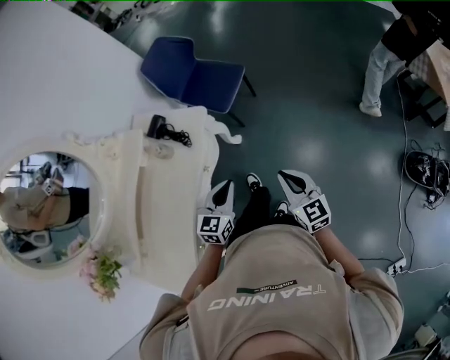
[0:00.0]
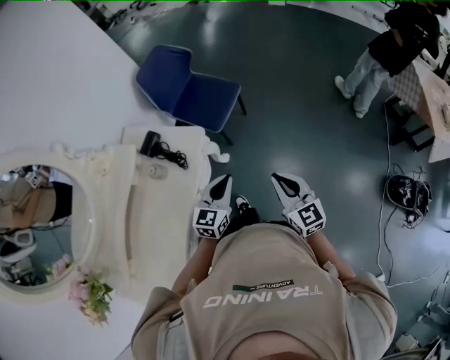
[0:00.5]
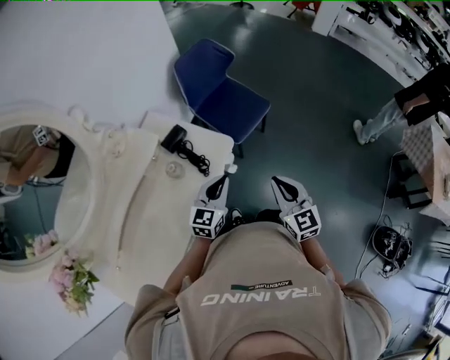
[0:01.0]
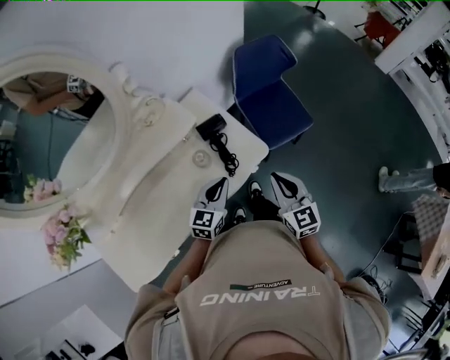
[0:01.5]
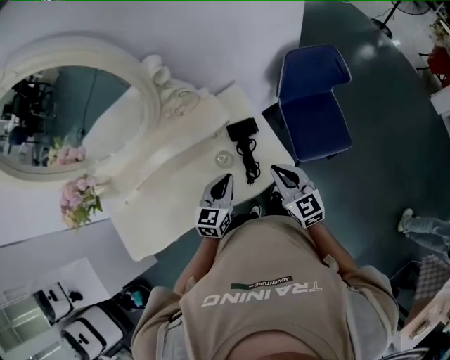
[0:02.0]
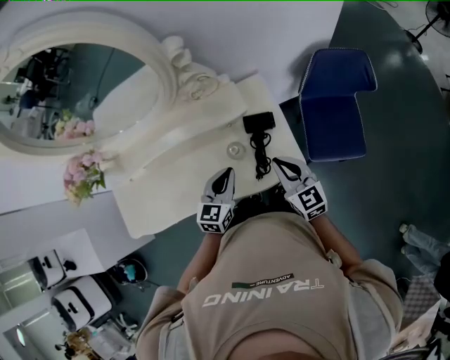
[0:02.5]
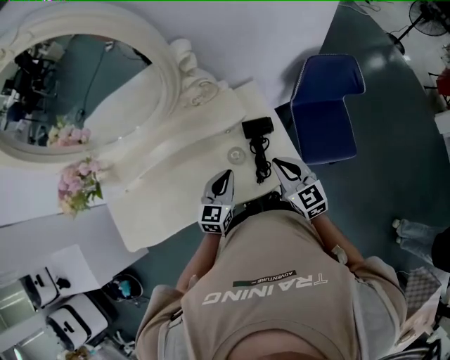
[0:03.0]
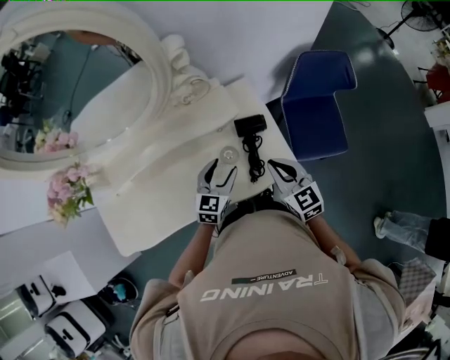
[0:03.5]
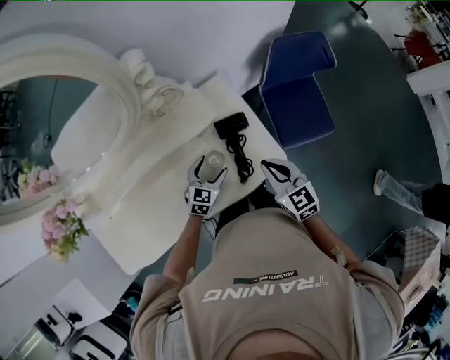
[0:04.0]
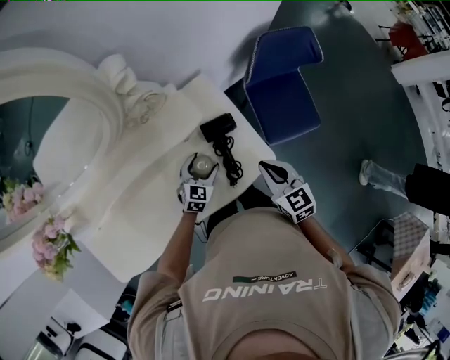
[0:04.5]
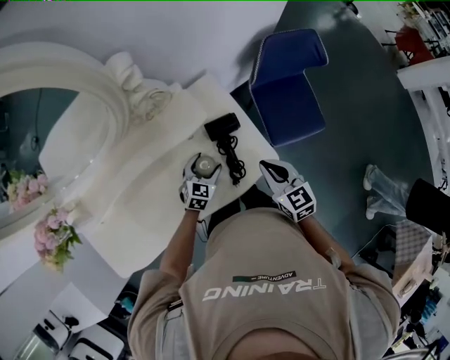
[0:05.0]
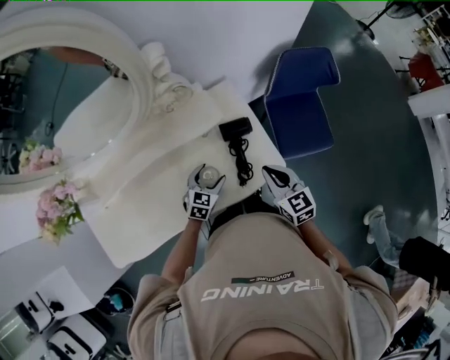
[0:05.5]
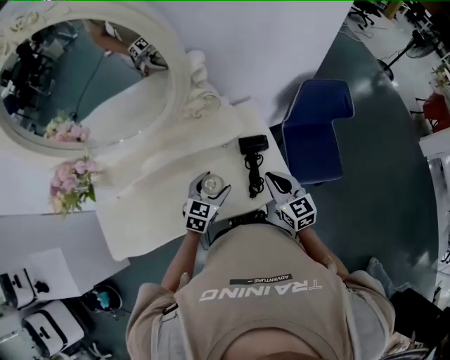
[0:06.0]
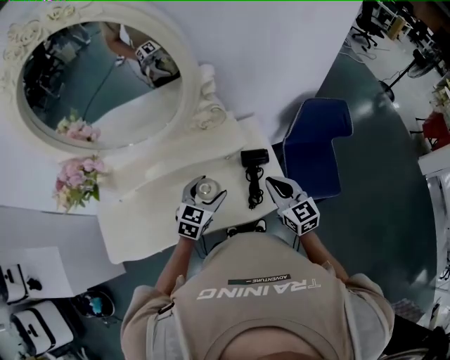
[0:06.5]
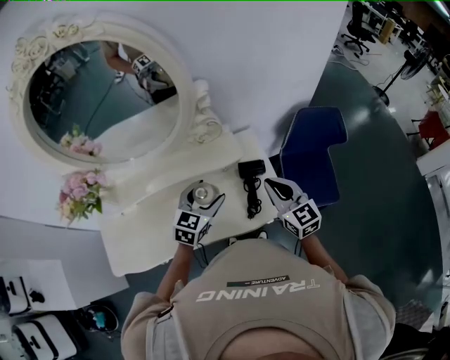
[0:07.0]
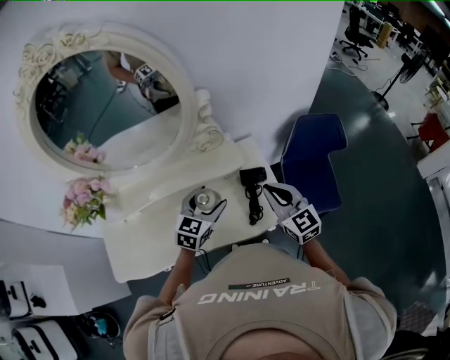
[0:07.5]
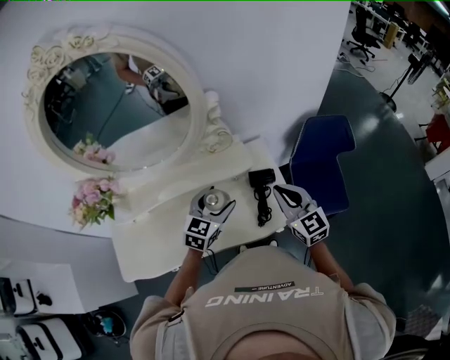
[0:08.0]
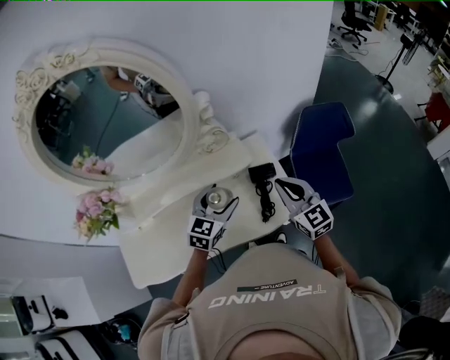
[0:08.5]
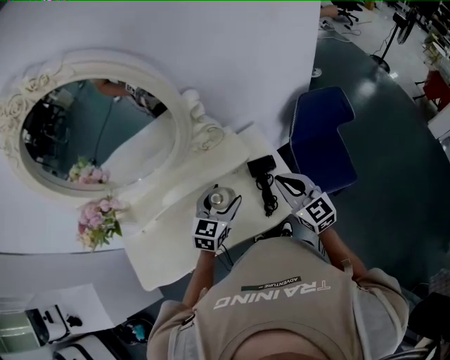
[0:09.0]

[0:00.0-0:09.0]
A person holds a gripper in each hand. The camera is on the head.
0:00.0 to 0:02.0: The left gripper shifts by about 30 cm, and swivels approximately 50 degrees, while the right gripper changes place by approximately 40 cm, and rotates about 50 degrees.
0:02.0 to 0:04.5: The left gripper moves downward and forward, some 20 cm, changes its angle by approximately 20 degrees, and opens.
0:04.5 to 0:07.0: The left gripper heads upward, covering approximately 25 cm. Meanwhile the right gripper shifts some 10 cm upward, and swivels approximately 20 degrees.
0:07.0 to 0:09.0: The grippers move only a little.

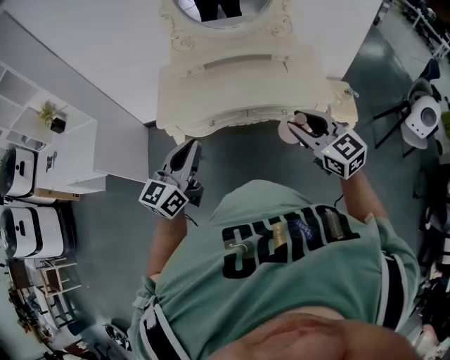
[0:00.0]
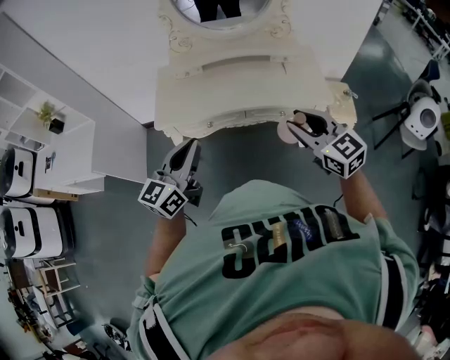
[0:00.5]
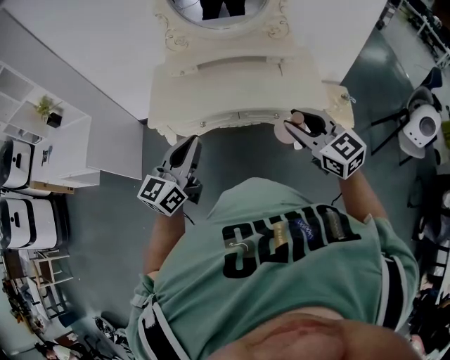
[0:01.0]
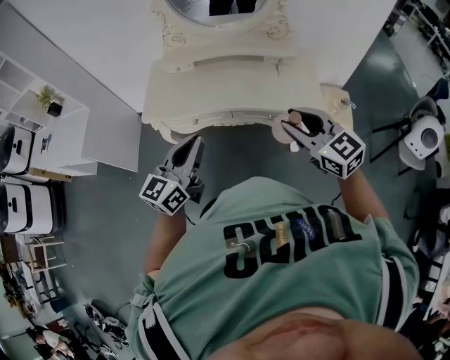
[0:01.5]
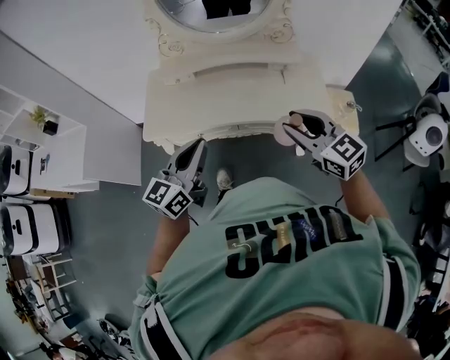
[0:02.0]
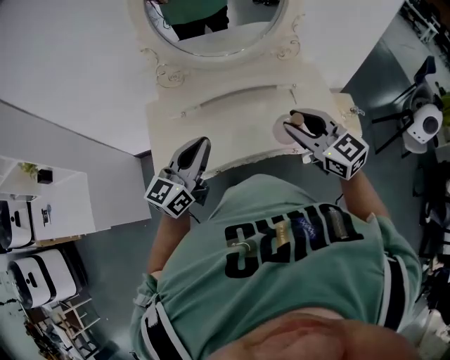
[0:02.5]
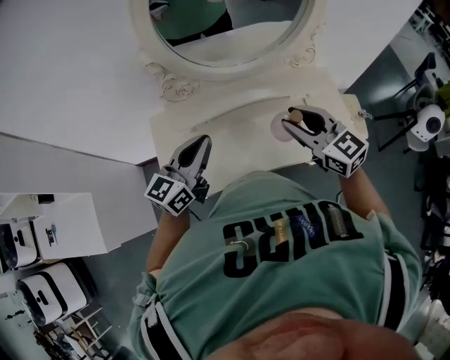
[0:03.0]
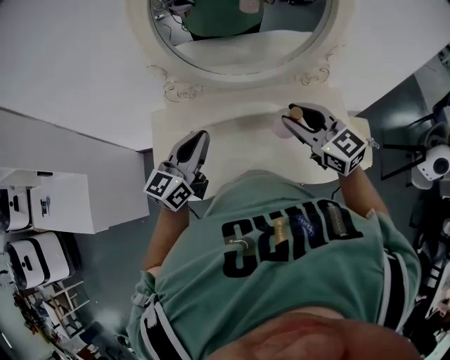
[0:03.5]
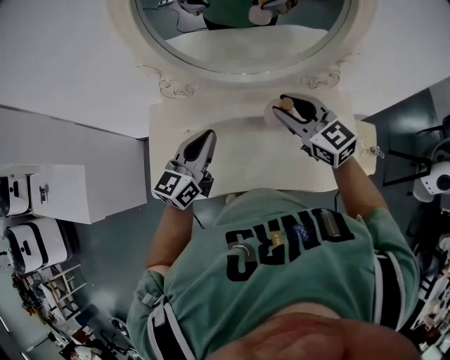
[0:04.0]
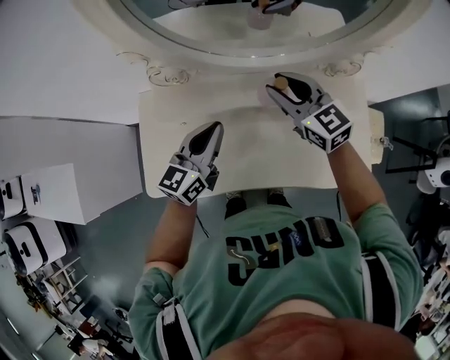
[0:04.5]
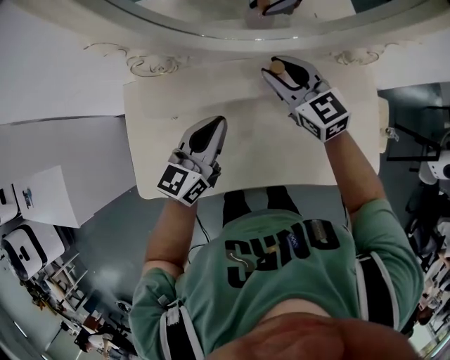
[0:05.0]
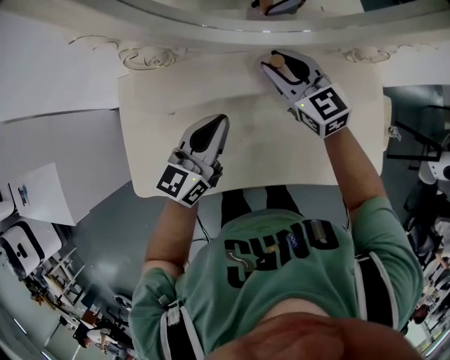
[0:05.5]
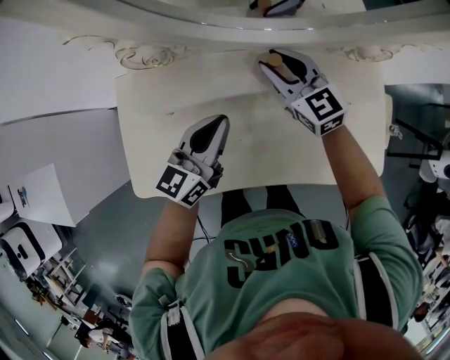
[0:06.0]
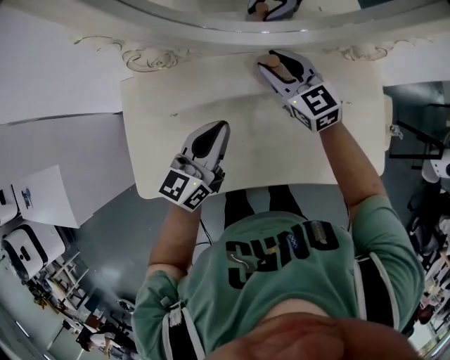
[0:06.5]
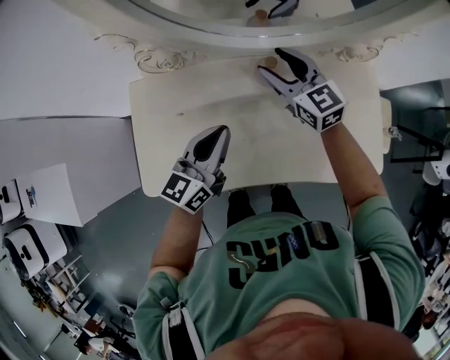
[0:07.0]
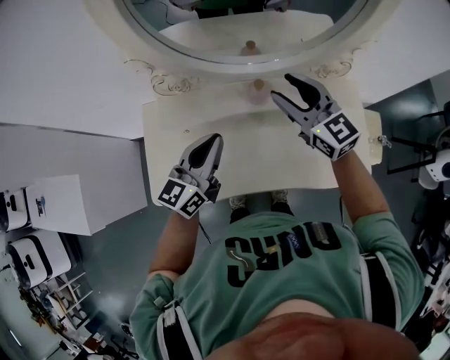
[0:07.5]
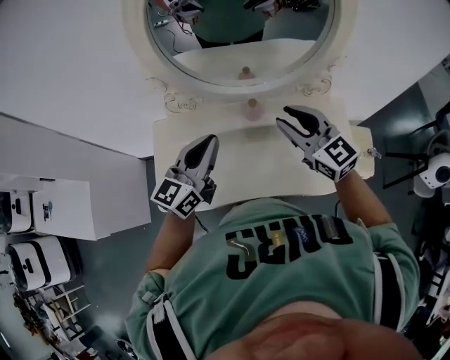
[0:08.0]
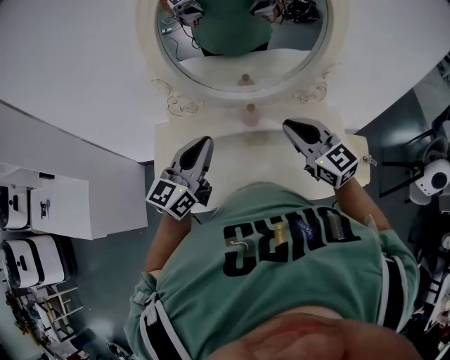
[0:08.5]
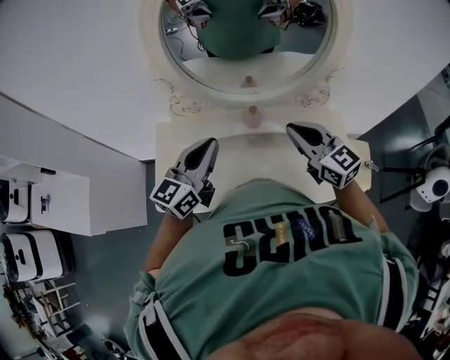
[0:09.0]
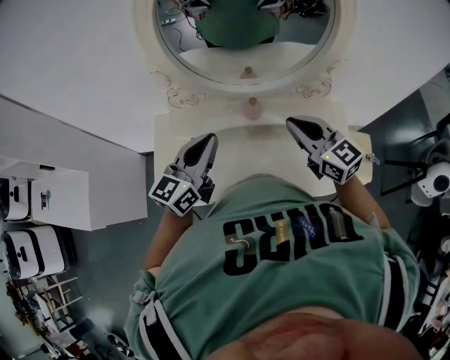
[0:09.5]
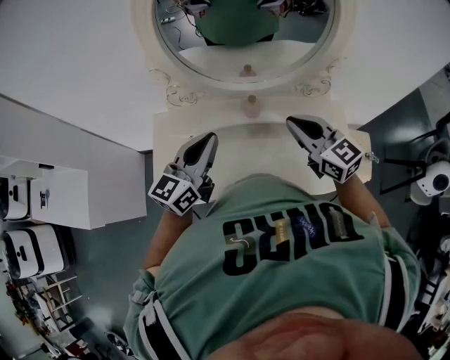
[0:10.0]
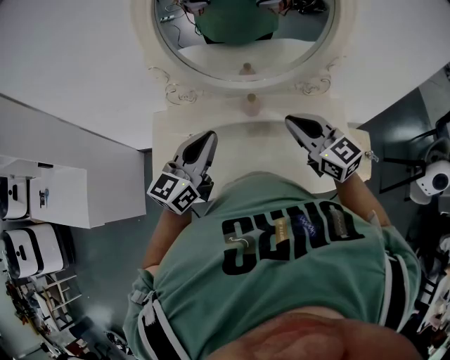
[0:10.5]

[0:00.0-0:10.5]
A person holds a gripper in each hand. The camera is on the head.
0:00.0 to 0:02.0: Both grippers travel together forward and to the right, about 15 cm.
0:02.0 to 0:04.0: Both grippers travel together forward, approximately 40 cm.
0:04.0 to 0:06.5: The left gripper travels downward by roughly 15 cm, while the right gripper is displaced downward and forward by about 25 cm.
0:06.5 to 0:08.5: The left gripper shifts approximately 25 cm upward; the right gripper shifts about 30 cm upward and backward, and closes its fingers.
0:08.5 to 0:10.5: The grippers make only small movements.

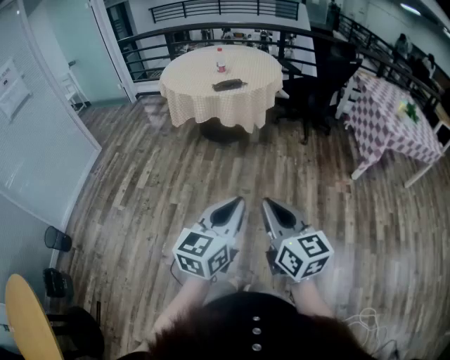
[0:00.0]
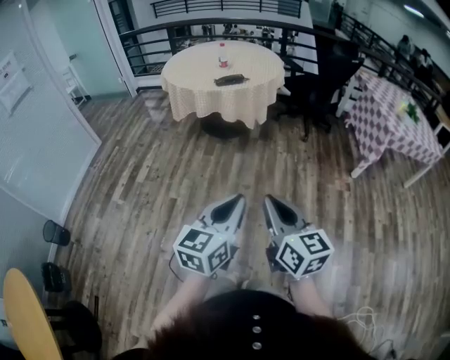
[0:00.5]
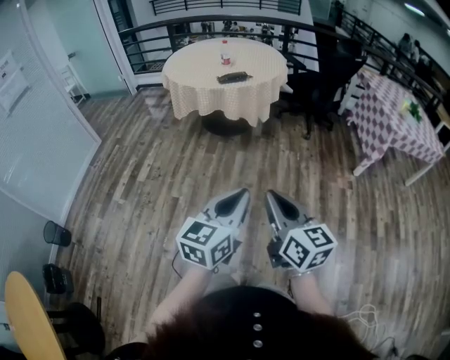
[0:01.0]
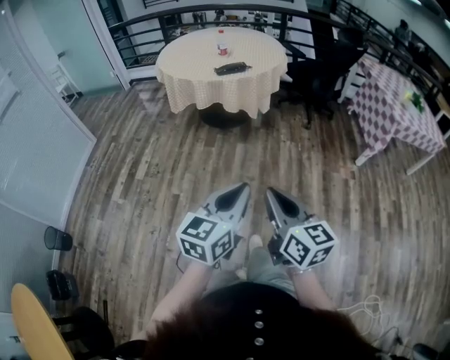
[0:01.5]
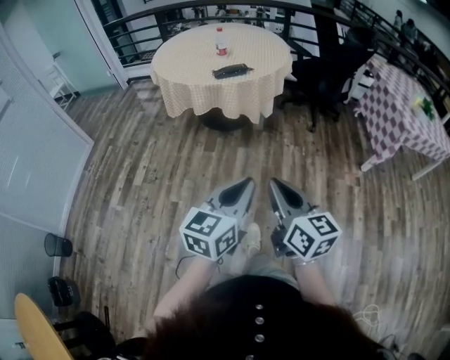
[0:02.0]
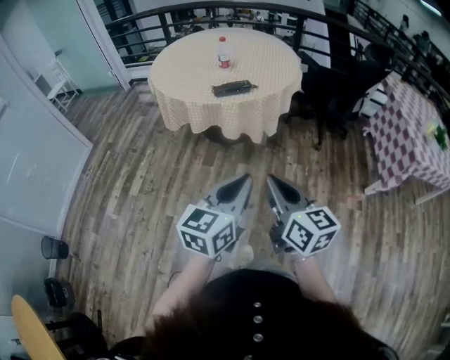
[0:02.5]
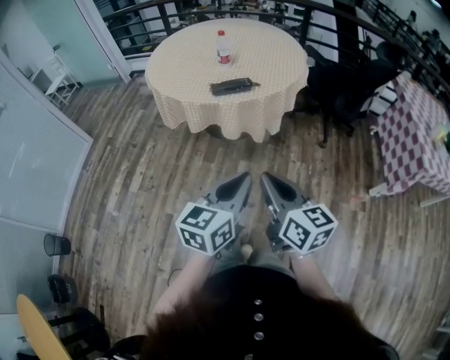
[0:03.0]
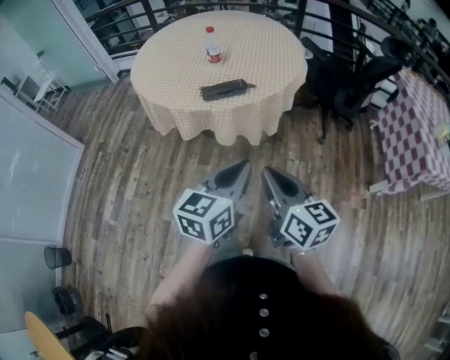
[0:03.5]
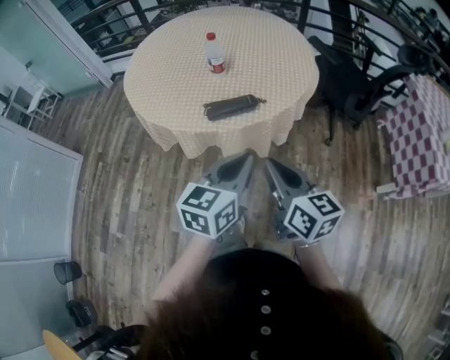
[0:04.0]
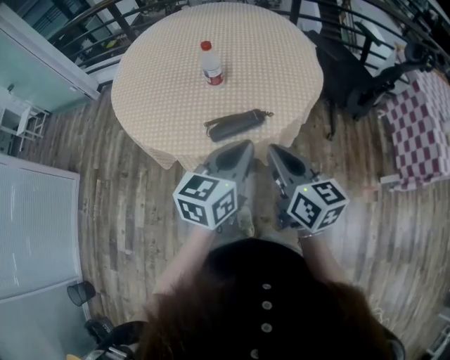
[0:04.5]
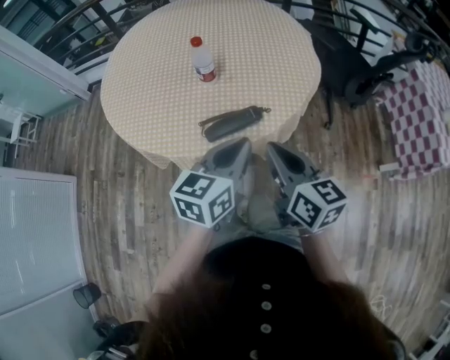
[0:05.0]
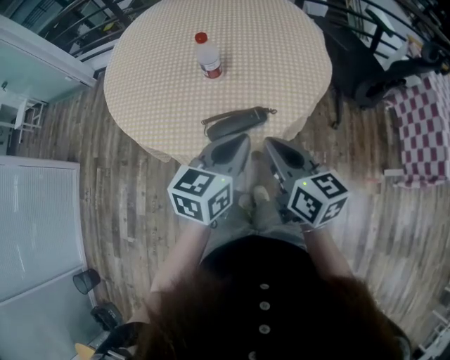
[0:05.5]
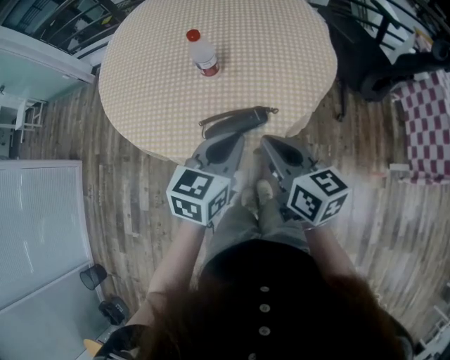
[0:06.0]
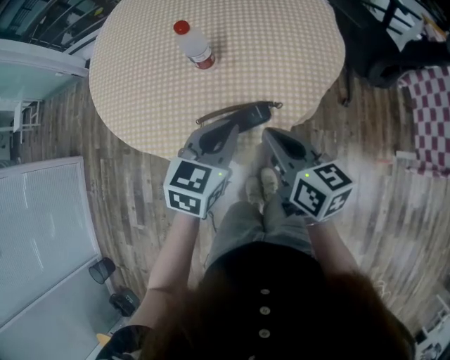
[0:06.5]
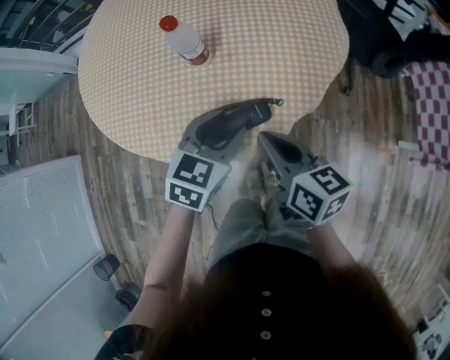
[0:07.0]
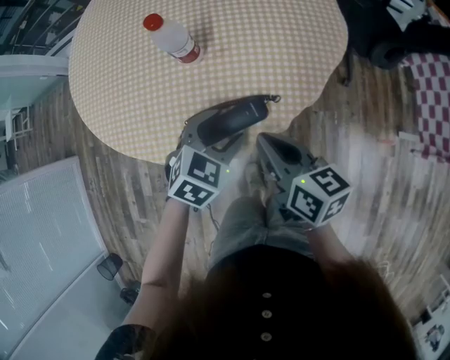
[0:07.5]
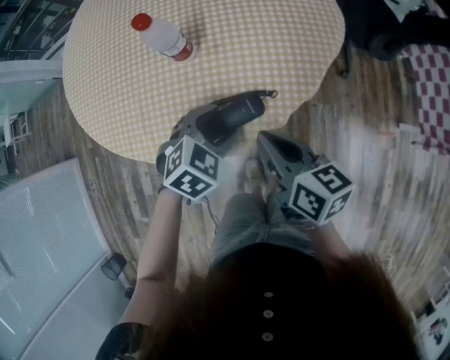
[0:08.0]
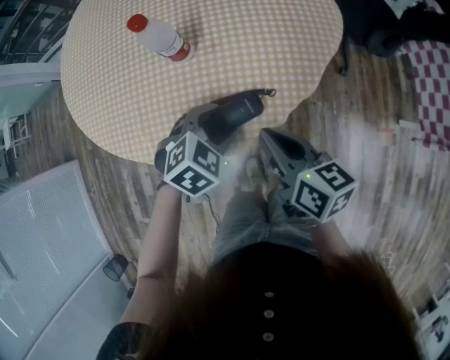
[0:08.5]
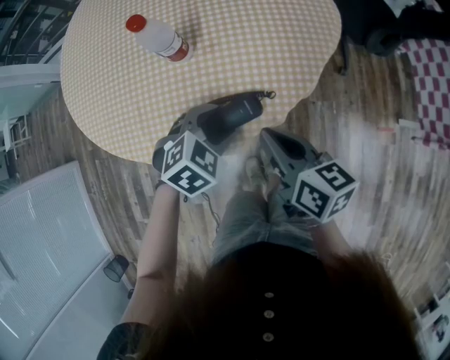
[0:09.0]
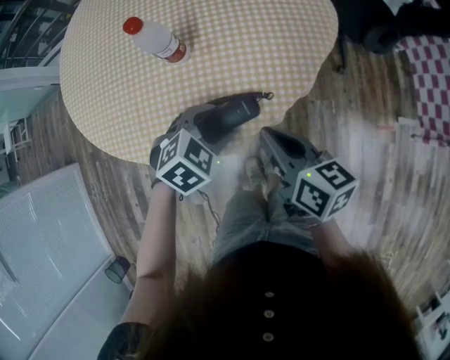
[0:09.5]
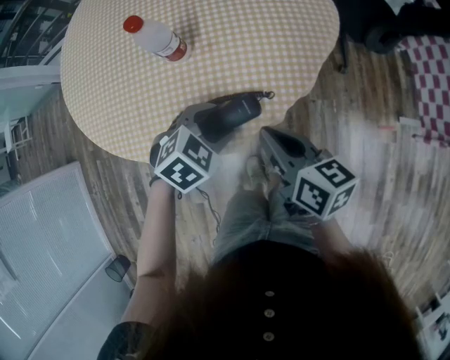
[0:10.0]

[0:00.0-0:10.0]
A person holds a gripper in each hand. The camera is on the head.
0:00.0 to 0:02.0: The grippers both shift forward by roughly 20 cm.
0:02.0 to 0:04.0: The two grippers travel together, forward, roughly 50 cm.
0:04.0 to 0:06.0: The grippers both shift forward by approximately 20 cm.
0:06.0 to 0:08.0: The left gripper goes about 15 cm downward, tips its fingers downward by approximately 30 degrees, and opens. Meanwhile the right gripper shifts some 10 cm downward.
0:08.0 to 0:10.0: The grippers make only small movements.
